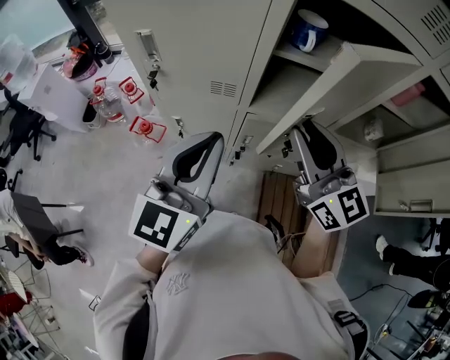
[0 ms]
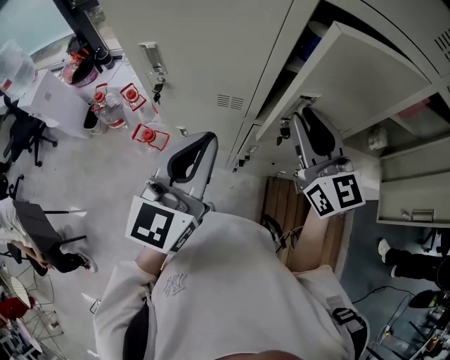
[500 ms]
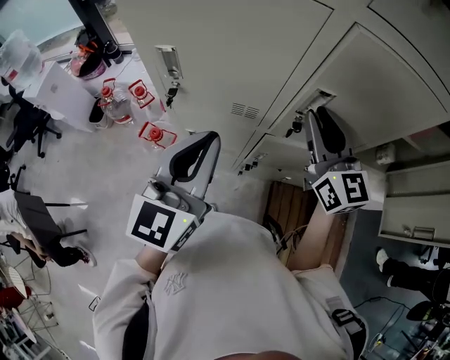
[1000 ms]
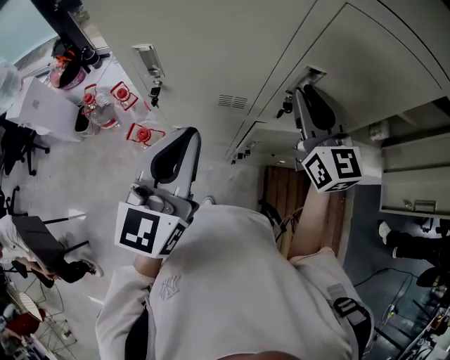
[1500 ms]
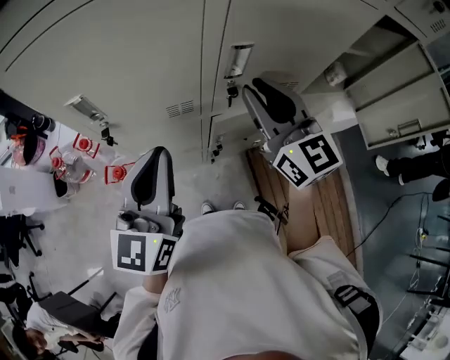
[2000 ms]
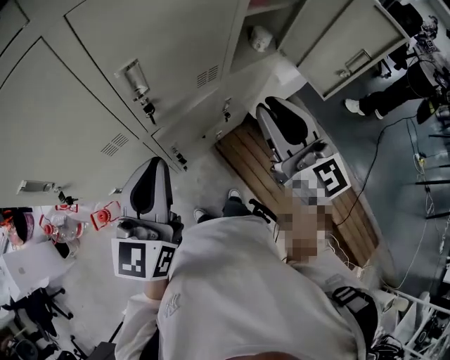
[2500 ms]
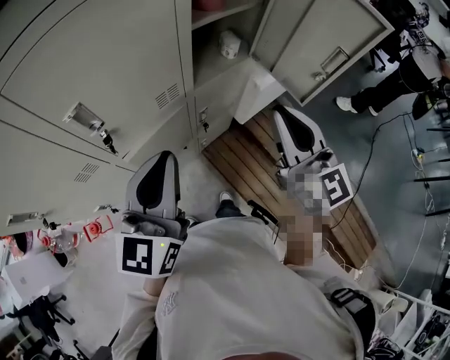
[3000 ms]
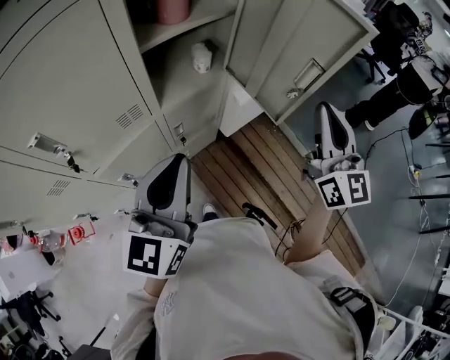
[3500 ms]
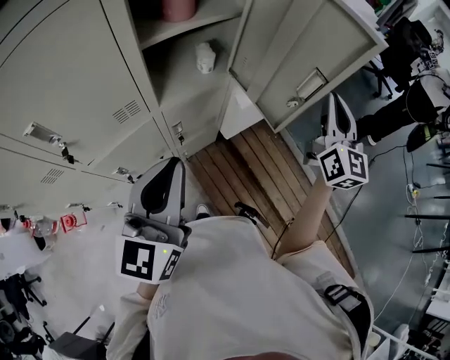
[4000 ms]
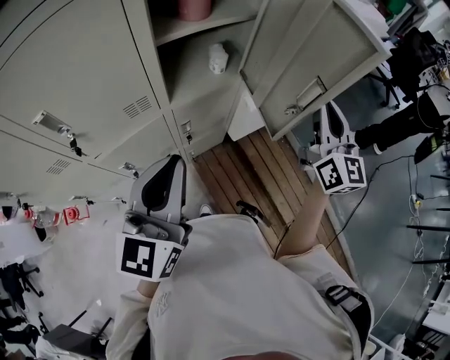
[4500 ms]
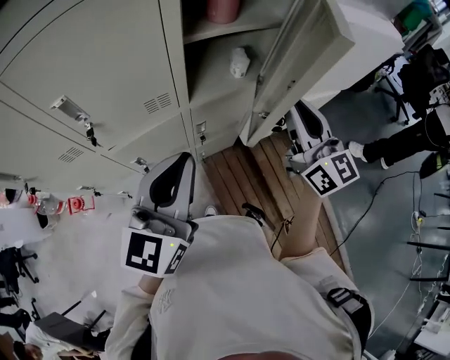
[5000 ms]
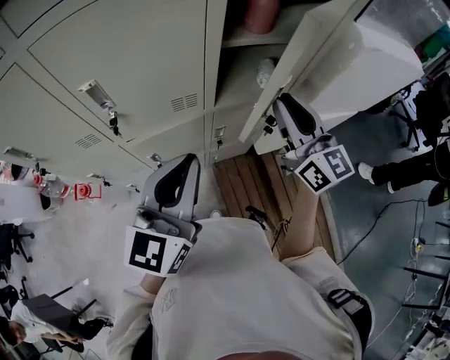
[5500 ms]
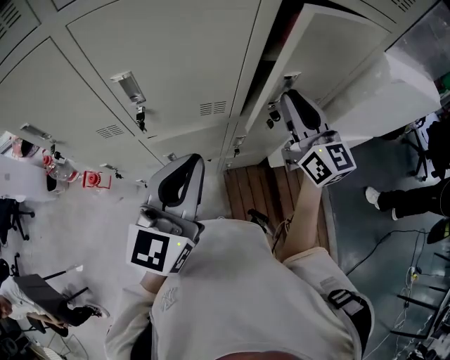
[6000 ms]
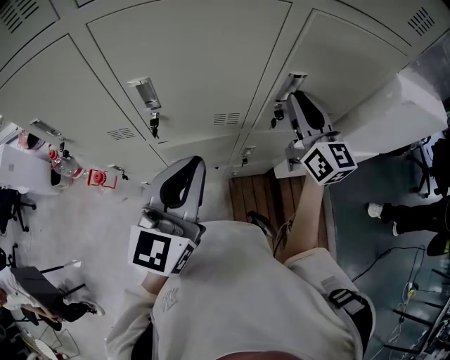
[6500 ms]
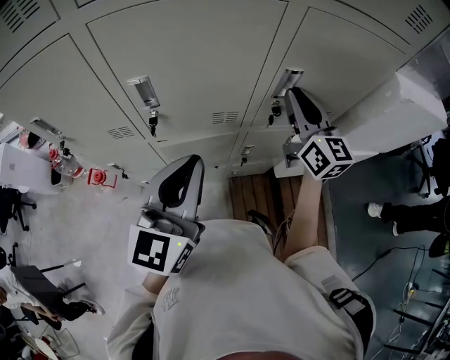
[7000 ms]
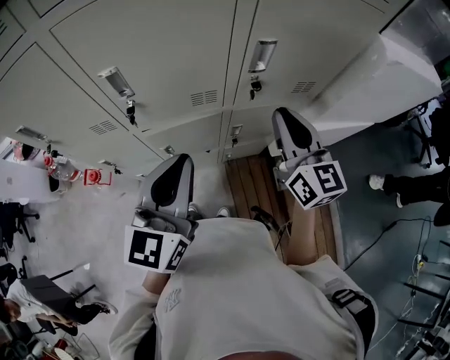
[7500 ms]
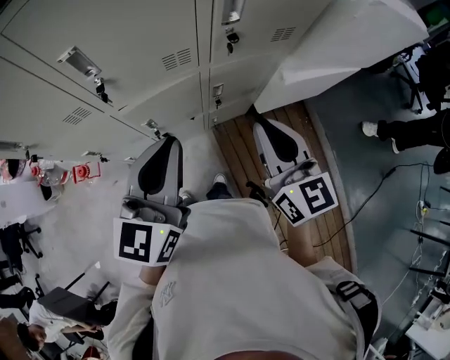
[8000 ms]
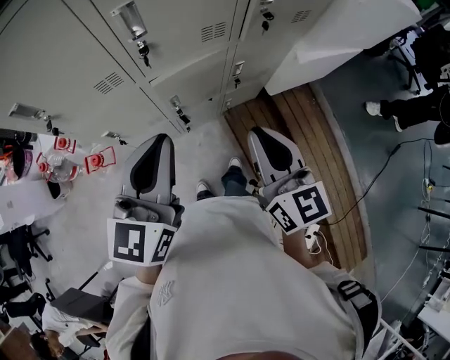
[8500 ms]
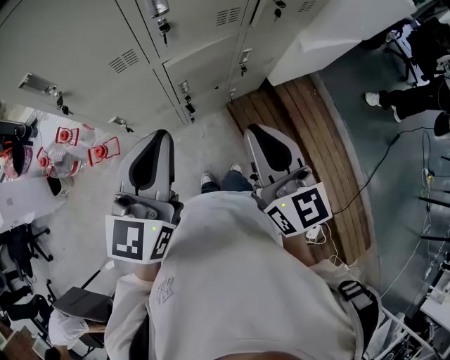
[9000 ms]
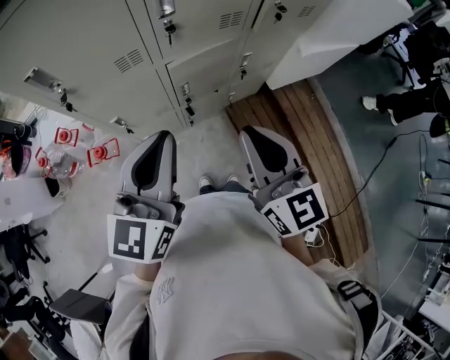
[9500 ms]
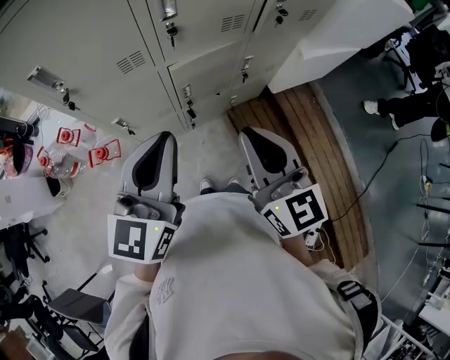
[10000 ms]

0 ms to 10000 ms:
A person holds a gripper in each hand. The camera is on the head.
0 ms to 2000 ms: The left gripper heads forward and to the left, covering about 10 cm. Meanwhile the right gripper travels forward by approximately 10 cm.
2000 ms to 4000 ms: The left gripper changes place by about 40 cm, and changes its angle by roughly 20 degrees. Meanwhile the right gripper moves roughly 60 cm, and changes its angle by roughly 50 degrees.
4000 ms to 6000 ms: The left gripper ends up roughly 10 cm from where it was. Meanwhile the right gripper shifts by approximately 30 cm, and swivels approximately 50 degrees.
6000 ms to 8000 ms: The right gripper is displaced backward and downward by approximately 20 cm, while the left gripper changes place by roughly 5 cm.
8000 ms to 10000 ms: Both grippers travel together to the left and backward, about 25 cm.

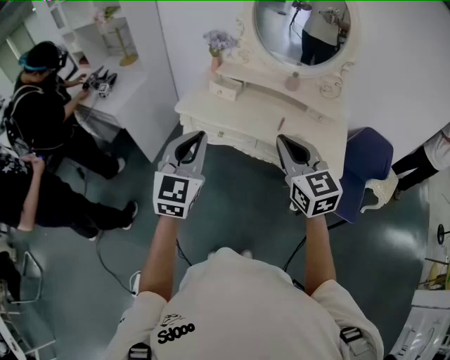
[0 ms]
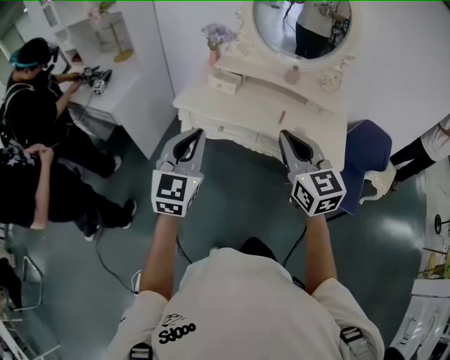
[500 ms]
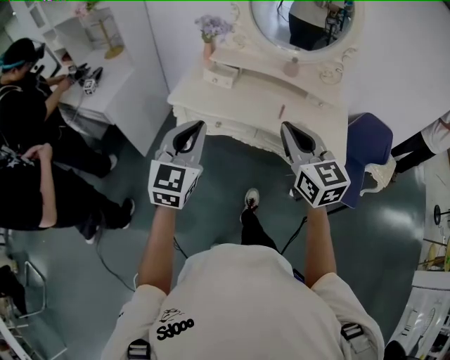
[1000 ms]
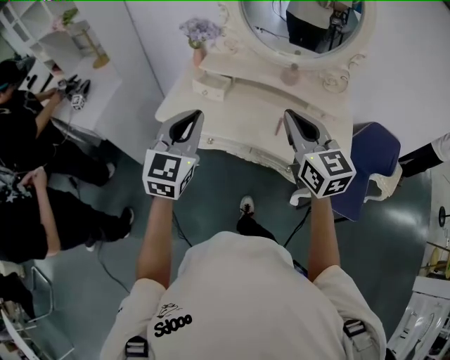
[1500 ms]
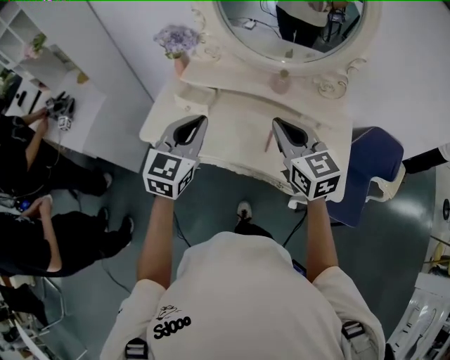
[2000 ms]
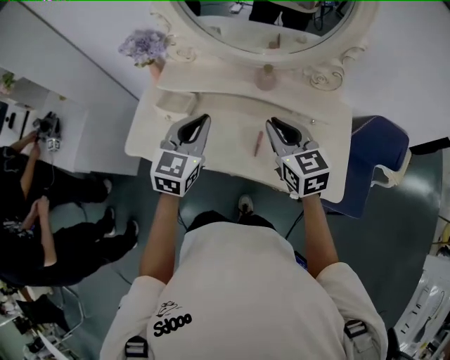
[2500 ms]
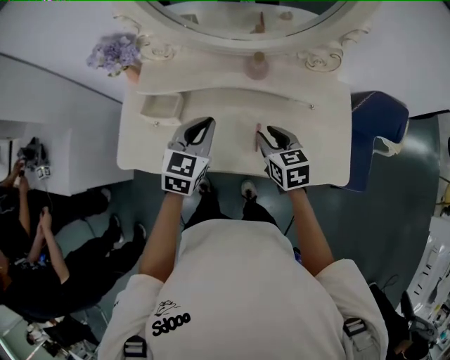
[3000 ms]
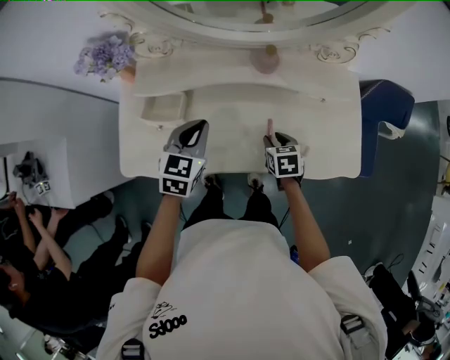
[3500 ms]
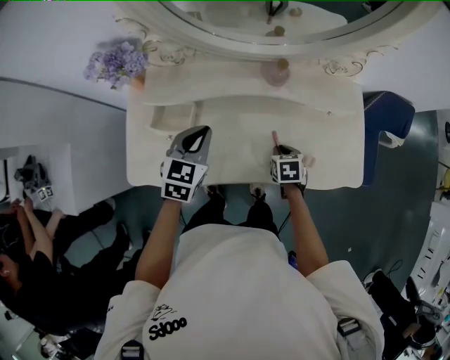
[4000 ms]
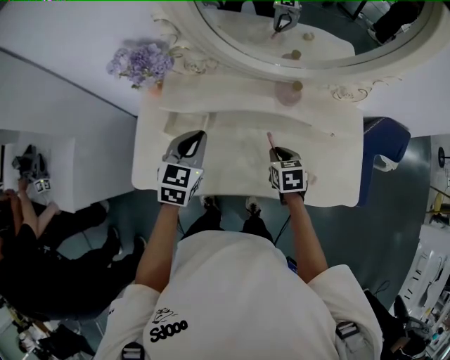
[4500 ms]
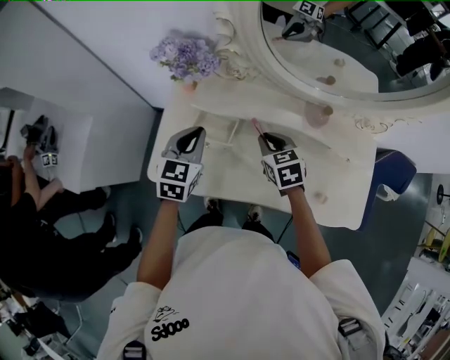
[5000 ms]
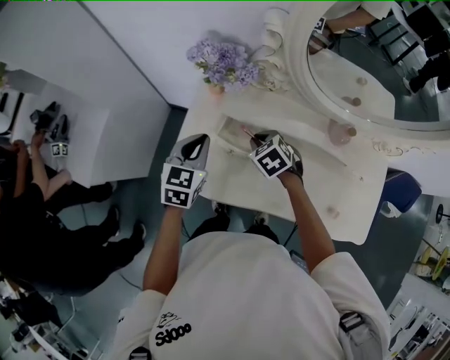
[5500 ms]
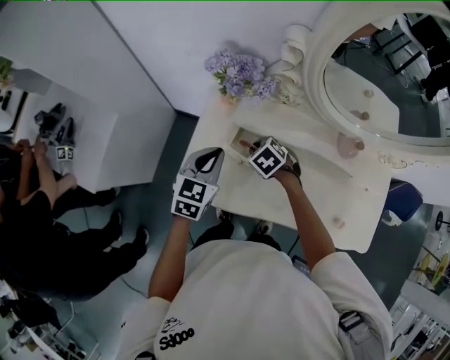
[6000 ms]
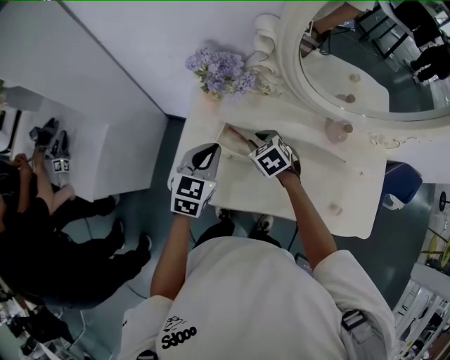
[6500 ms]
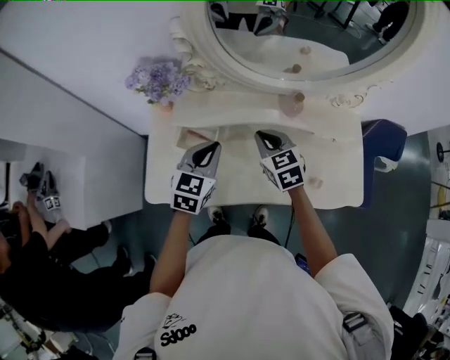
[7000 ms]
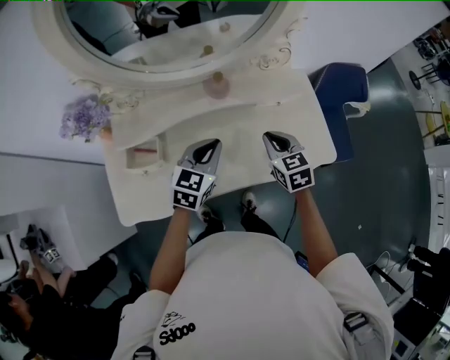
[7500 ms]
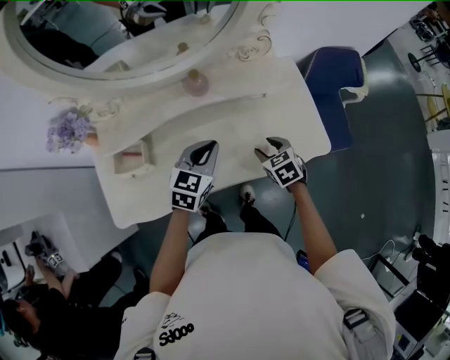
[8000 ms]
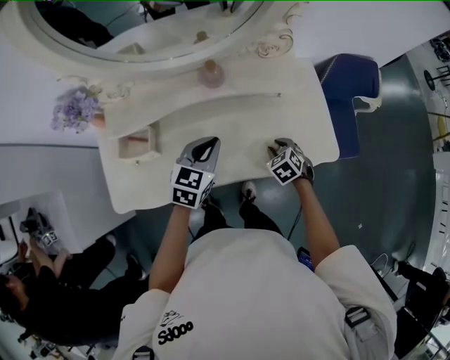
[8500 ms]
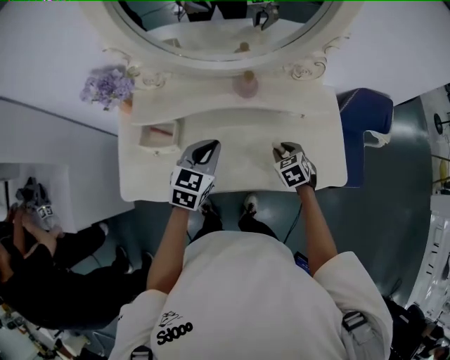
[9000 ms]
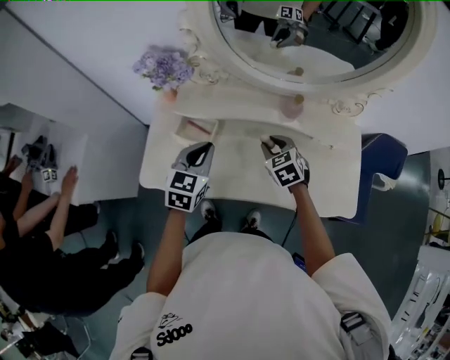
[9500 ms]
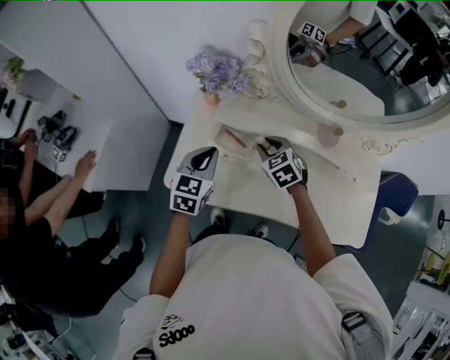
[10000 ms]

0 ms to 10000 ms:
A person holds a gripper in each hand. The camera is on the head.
0 ms to 2000 ms: Both grippers move forward, some 30 cm.
2000 ms to 4000 ms: The right gripper moves downward, approximately 35 cm, tilts its fingers approximately 50 degrees downward, and opens and closes again. The left gripper heads forward and downward, covering about 25 cm, and changes its angle by approximately 30 degrees.
4000 ms to 6000 ms: The left gripper shifts by some 20 cm; the right gripper shifts by some 40 cm, and rolls counterclockwise, seen from behind, by about 50 degrees.
6000 ms to 8000 ms: The left gripper changes place by about 40 cm, and changes its angle by approximately 40 degrees, while the right gripper goes upward and returns, about 10 cm each way, rotates around the line of its fingers by roughly 40 degrees, clockwise from behind, and opens.
8000 ms to 10000 ms: The right gripper moves some 40 cm, changes its angle by roughly 40 degrees, and closes up. Meanwhile the left gripper moves approximately 35 cm, and rotates about 40 degrees.

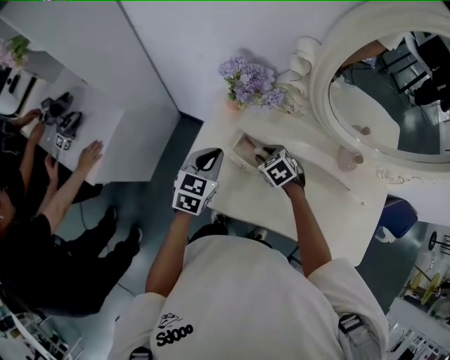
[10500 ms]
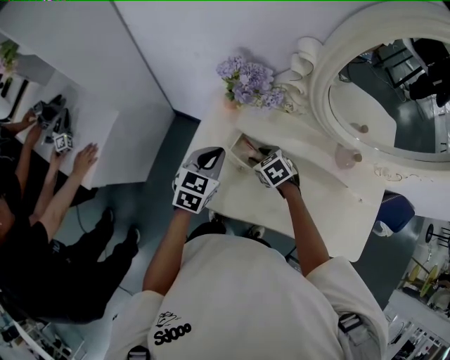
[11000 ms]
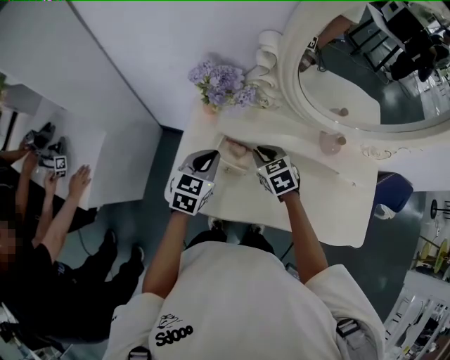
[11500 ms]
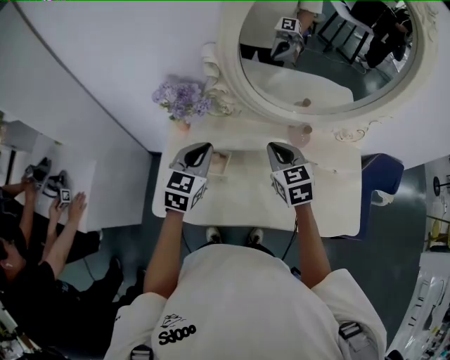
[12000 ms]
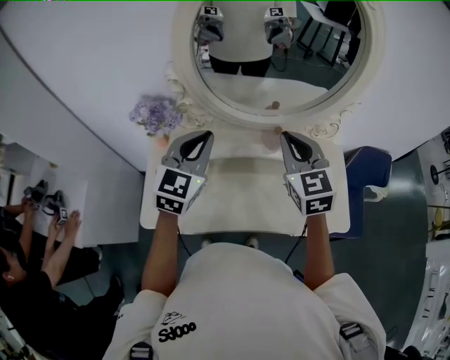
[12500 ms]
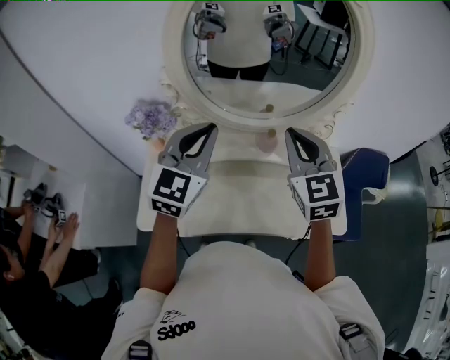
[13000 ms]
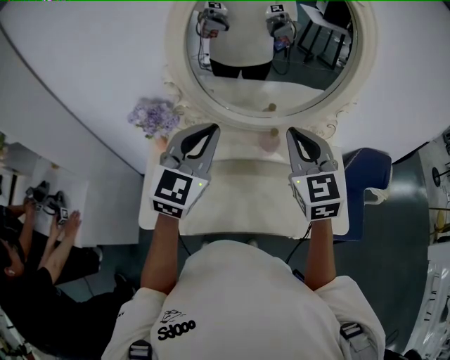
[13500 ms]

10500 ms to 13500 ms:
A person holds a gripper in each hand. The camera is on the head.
10500 ms to 12000 ms: The left gripper heads to the right and upward, covering some 15 cm. The right gripper is displaced upward and to the right by roughly 25 cm, tips its fingers upward by about 30 degrees, and closes.
12000 ms to 13500 ms: The two grippers go about 20 cm upward and to the right. The left gripper rotates roughly 20 degrees, while the right gripper rotates about 20 degrees.

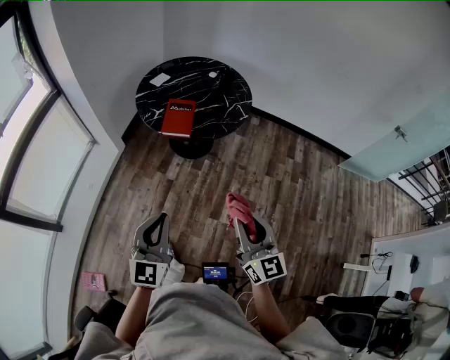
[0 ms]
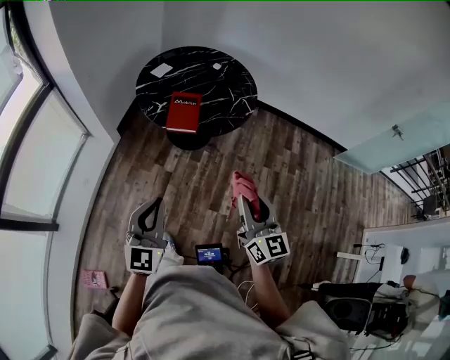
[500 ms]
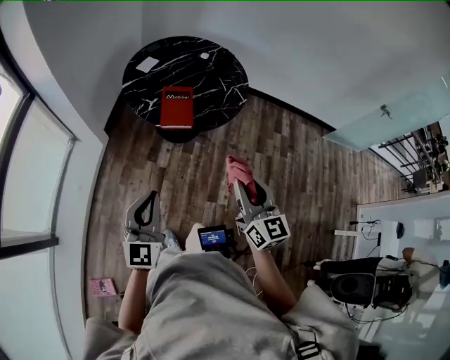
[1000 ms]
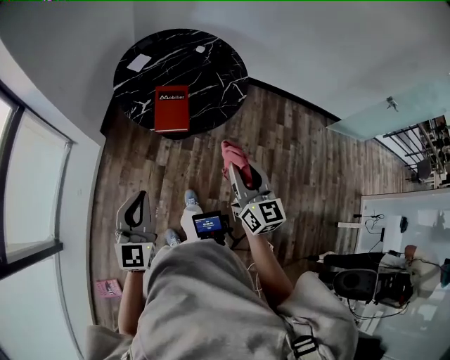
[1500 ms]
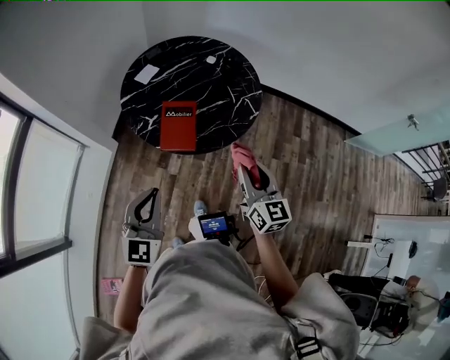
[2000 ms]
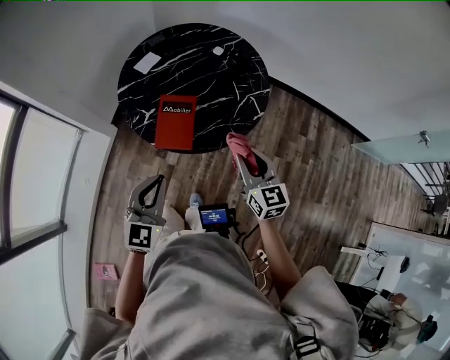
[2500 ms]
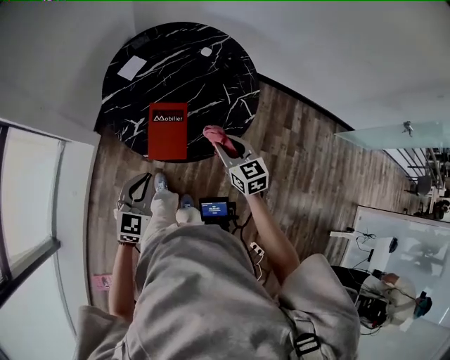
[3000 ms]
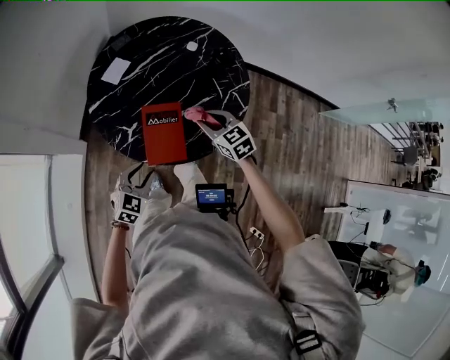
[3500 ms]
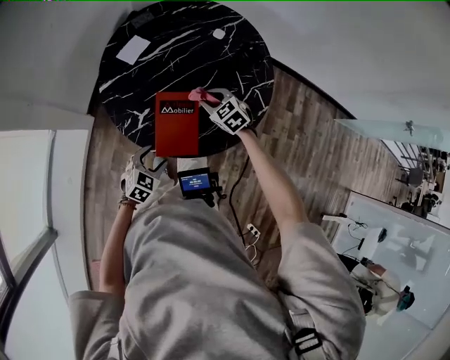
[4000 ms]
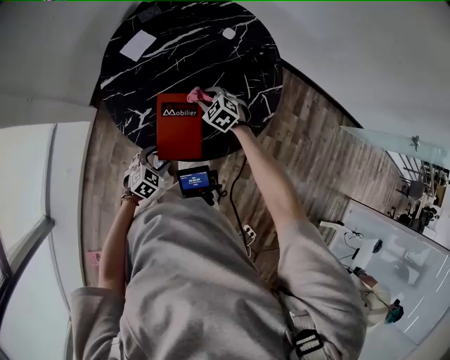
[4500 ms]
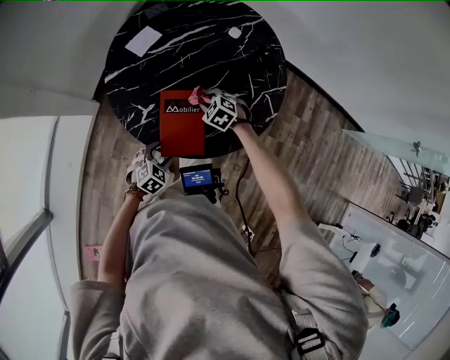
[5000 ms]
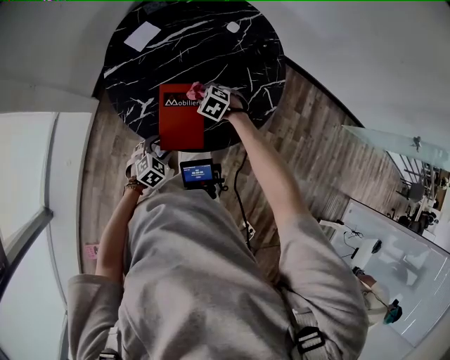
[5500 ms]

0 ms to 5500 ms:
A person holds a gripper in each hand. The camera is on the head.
0 ms to 2000 ms: The grippers both shift forward by about 30 cm.
2000 ms to 3500 ms: The right gripper goes roughly 30 cm forward and downward, and tips its fingers downward by about 30 degrees. Meanwhile the left gripper shifts about 30 cm downward and forward, rotates about 30 degrees, and opens up.
3500 ms to 5500 ms: The two grippers go about 15 cm downward. The left gripper changes its angle by about 20 degrees, and opens. Meanwhile the right gripper angles its fingers downward, by about 40 degrees.
